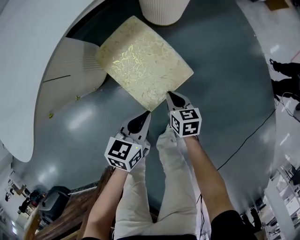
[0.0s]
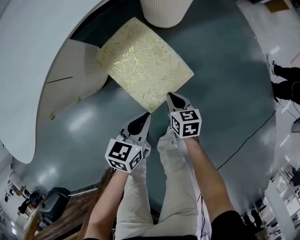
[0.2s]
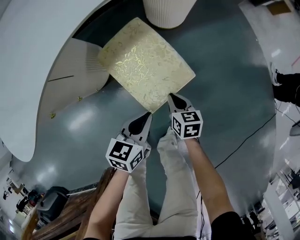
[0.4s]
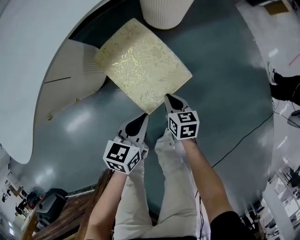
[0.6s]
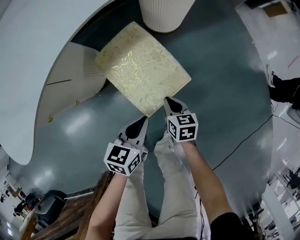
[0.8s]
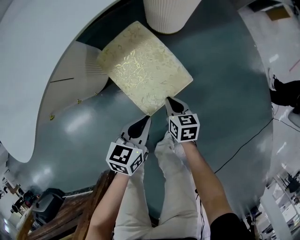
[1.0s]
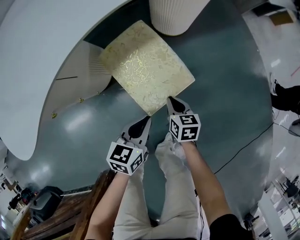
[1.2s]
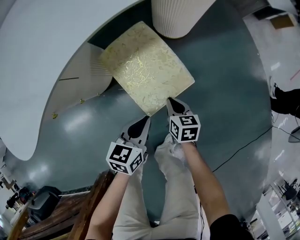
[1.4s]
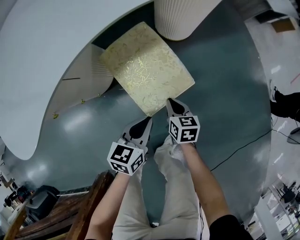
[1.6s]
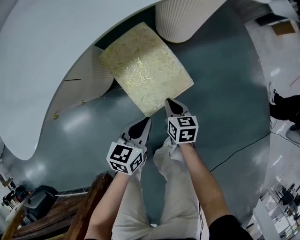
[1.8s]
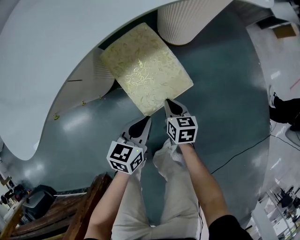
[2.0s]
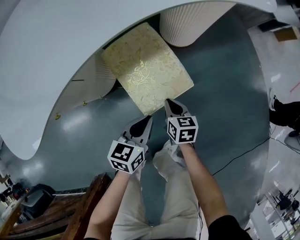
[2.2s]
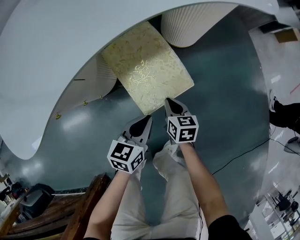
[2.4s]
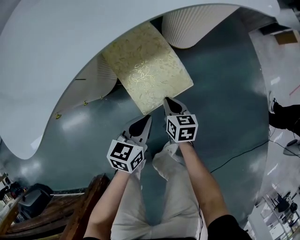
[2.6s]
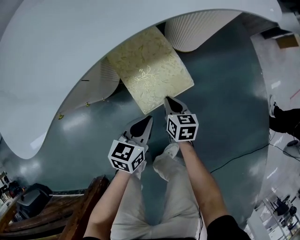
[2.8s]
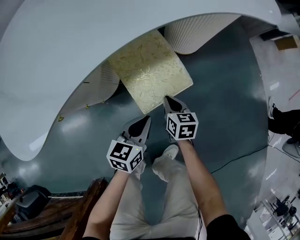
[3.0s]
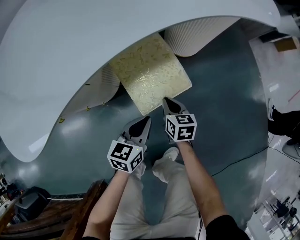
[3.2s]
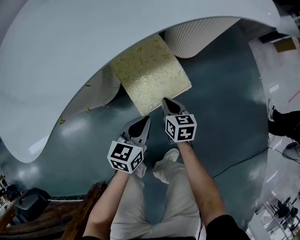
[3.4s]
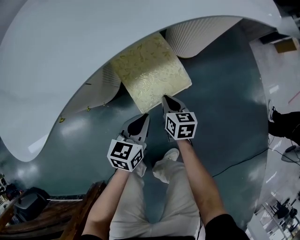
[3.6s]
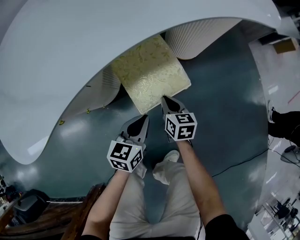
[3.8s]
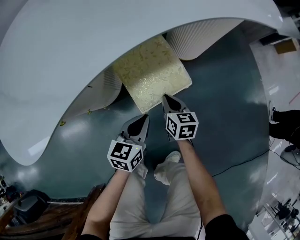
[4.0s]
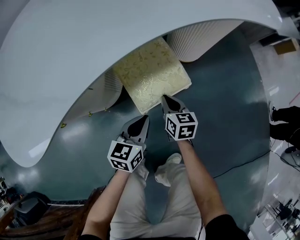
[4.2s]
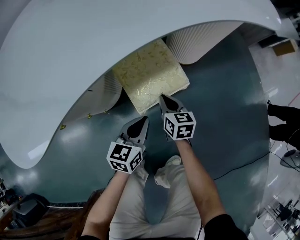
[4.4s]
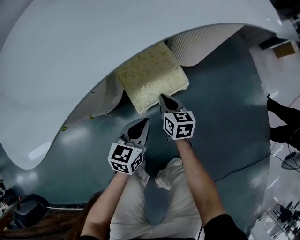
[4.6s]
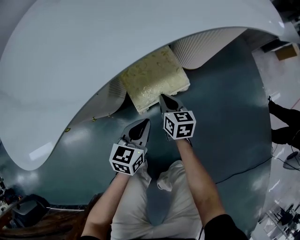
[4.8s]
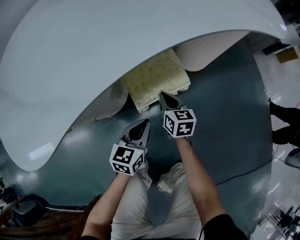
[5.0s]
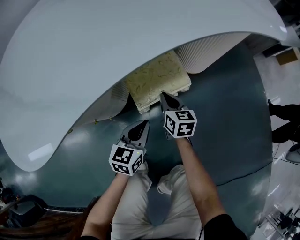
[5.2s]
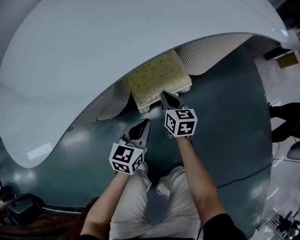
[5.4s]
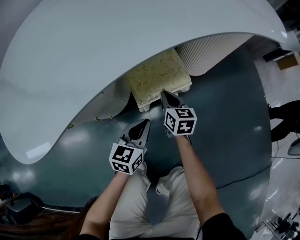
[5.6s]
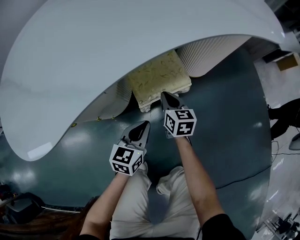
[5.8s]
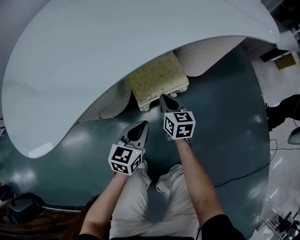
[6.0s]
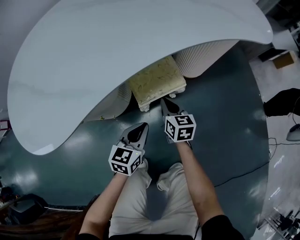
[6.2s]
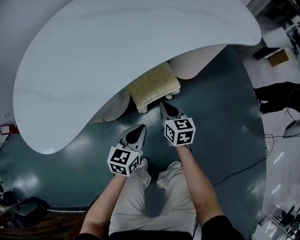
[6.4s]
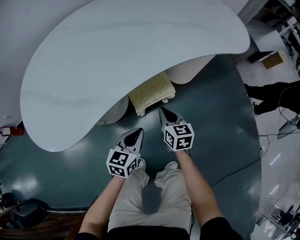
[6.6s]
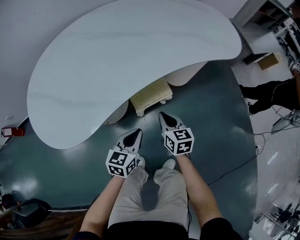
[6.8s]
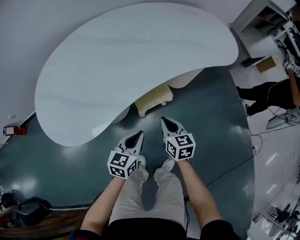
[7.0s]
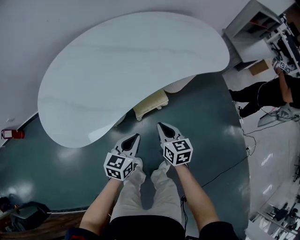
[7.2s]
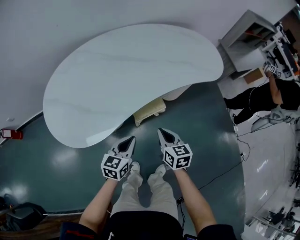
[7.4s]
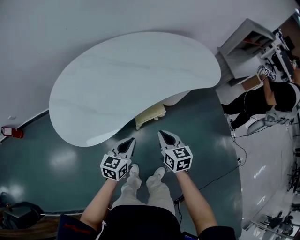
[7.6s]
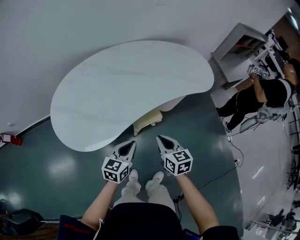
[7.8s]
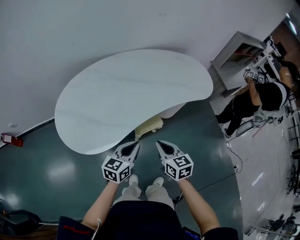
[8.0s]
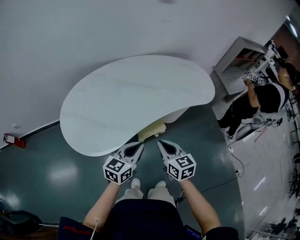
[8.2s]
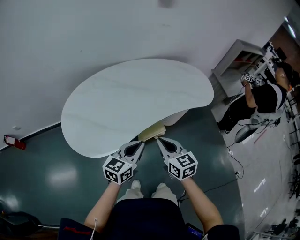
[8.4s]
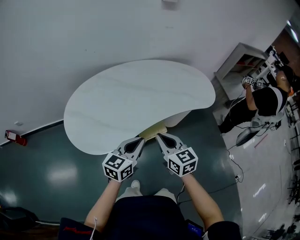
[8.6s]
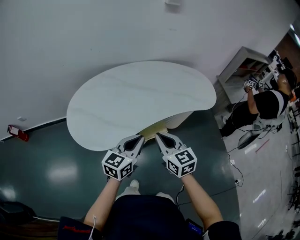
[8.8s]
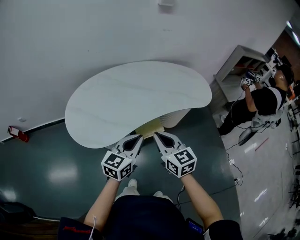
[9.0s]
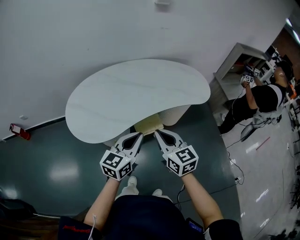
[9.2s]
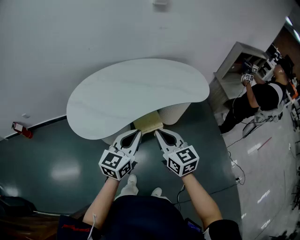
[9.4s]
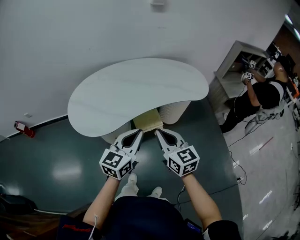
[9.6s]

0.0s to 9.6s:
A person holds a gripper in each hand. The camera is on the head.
0.0s to 3.2s: There are only small adjustments of the grippers.
3.2s to 4.8s: The grippers make only small movements.
4.8s to 6.4s: Both grippers move upward, about 25 cm.
6.4s to 8.0s: Both grippers travel together upward, some 70 cm.
8.0s to 9.6s: The two grippers go about 35 cm backward, upward and to the right. The left gripper changes its angle by about 20 degrees. Meanwhile the right gripper swivels approximately 20 degrees.

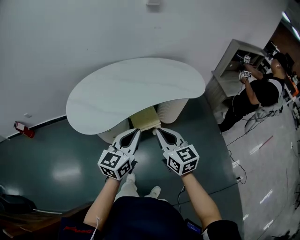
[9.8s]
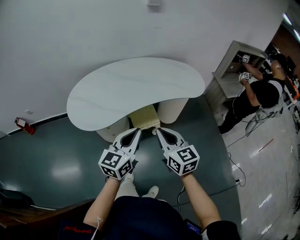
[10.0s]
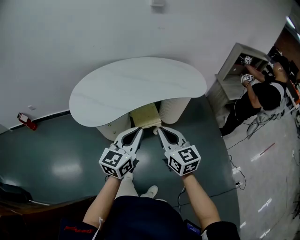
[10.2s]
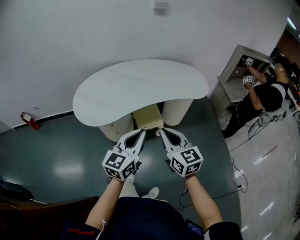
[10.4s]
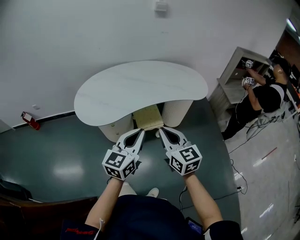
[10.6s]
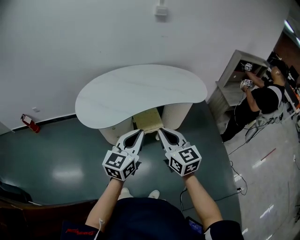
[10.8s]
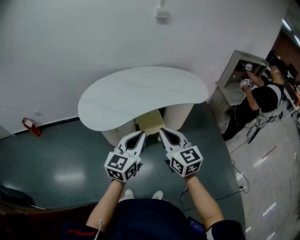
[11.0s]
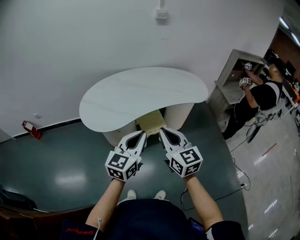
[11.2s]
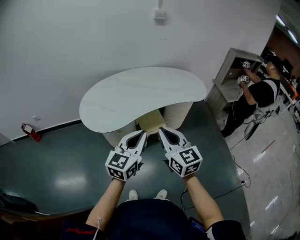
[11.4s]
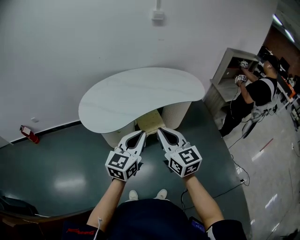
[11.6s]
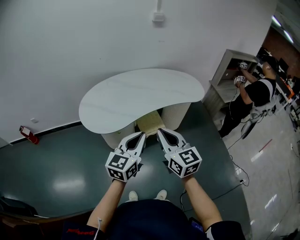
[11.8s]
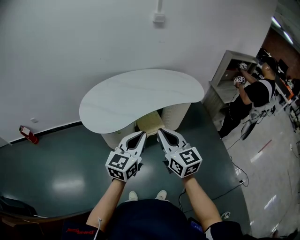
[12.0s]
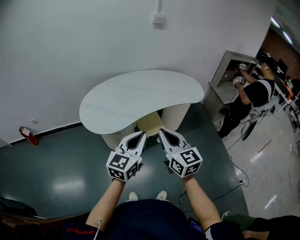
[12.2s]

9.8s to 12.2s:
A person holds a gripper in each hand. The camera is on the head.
9.8s to 11.0s: The grippers both shift backward by roughly 15 cm.
11.0s to 12.2s: The two grippers go about 10 cm to the left and backward.

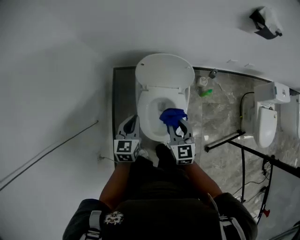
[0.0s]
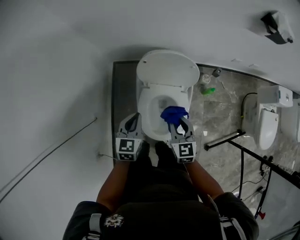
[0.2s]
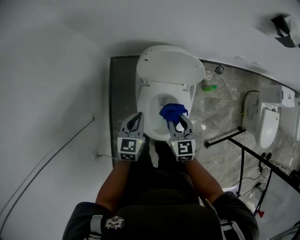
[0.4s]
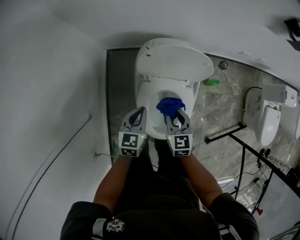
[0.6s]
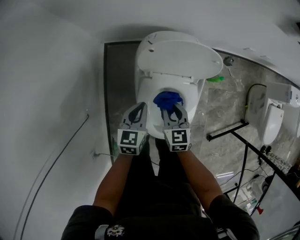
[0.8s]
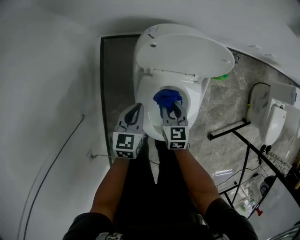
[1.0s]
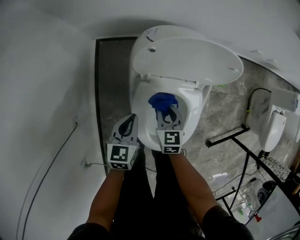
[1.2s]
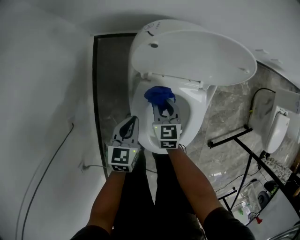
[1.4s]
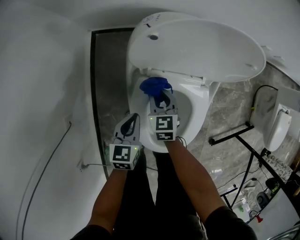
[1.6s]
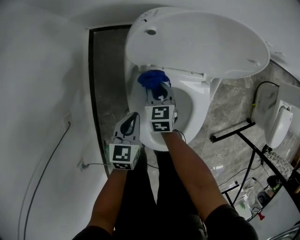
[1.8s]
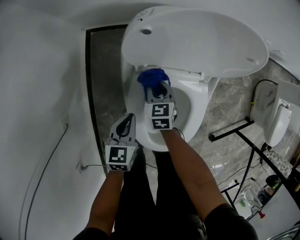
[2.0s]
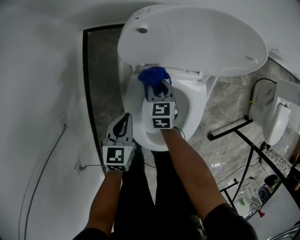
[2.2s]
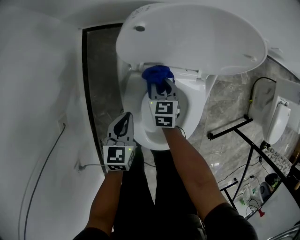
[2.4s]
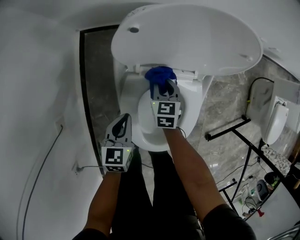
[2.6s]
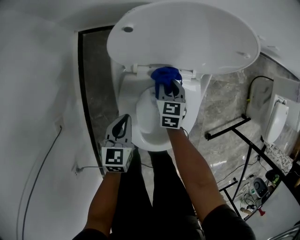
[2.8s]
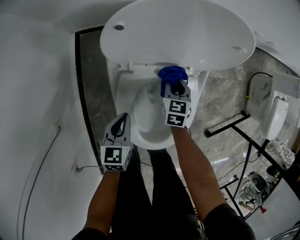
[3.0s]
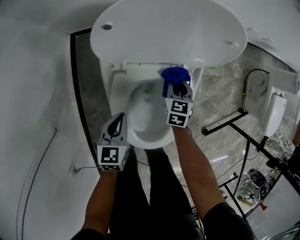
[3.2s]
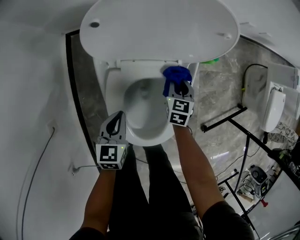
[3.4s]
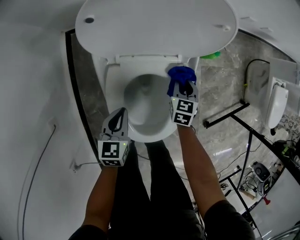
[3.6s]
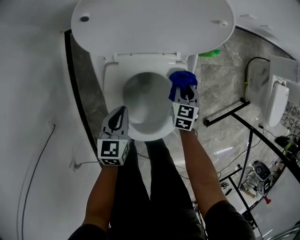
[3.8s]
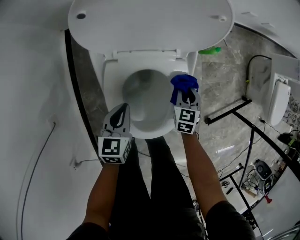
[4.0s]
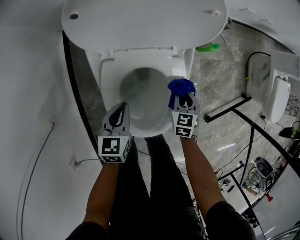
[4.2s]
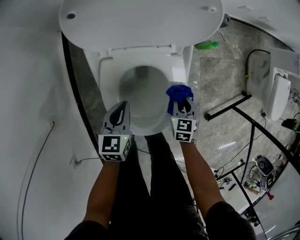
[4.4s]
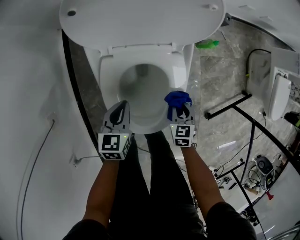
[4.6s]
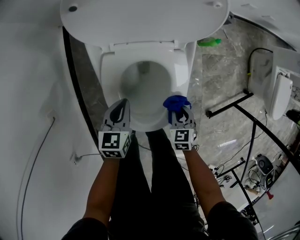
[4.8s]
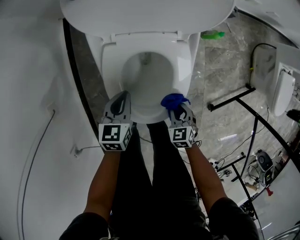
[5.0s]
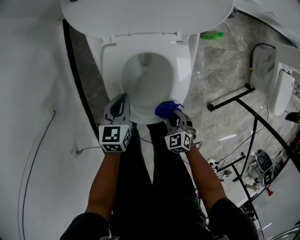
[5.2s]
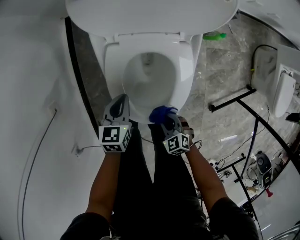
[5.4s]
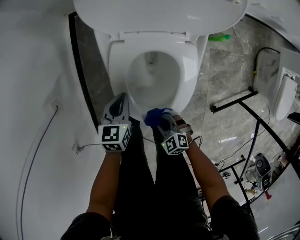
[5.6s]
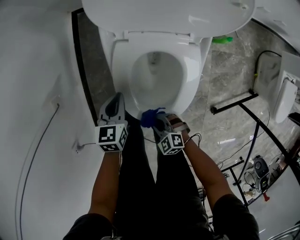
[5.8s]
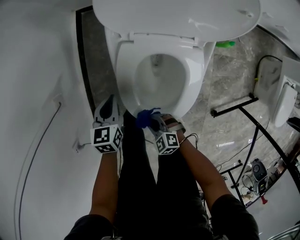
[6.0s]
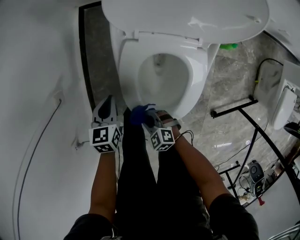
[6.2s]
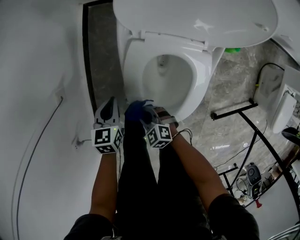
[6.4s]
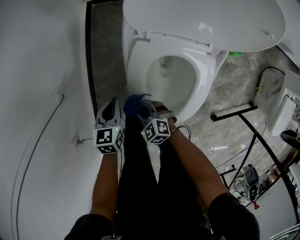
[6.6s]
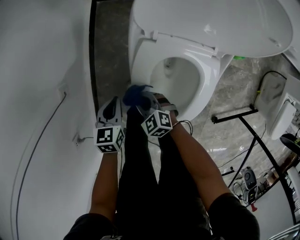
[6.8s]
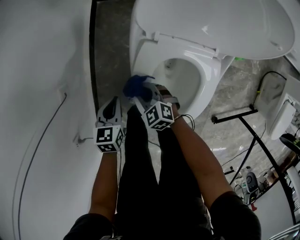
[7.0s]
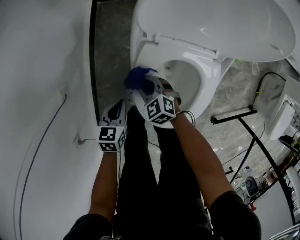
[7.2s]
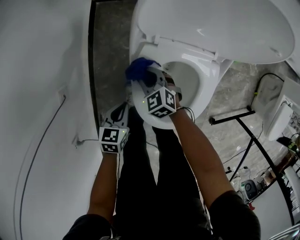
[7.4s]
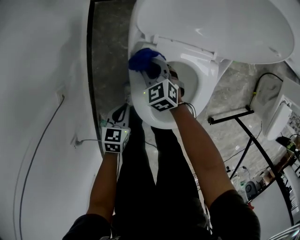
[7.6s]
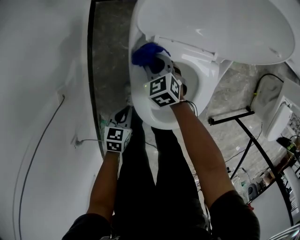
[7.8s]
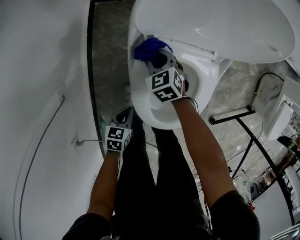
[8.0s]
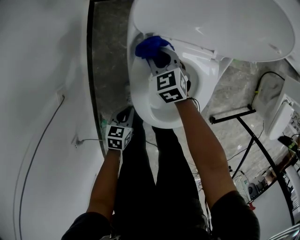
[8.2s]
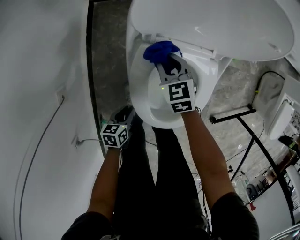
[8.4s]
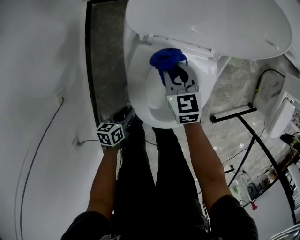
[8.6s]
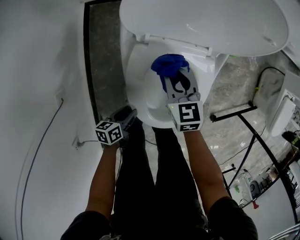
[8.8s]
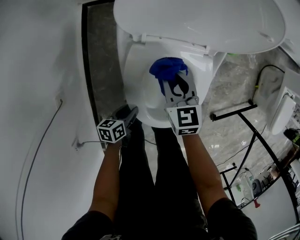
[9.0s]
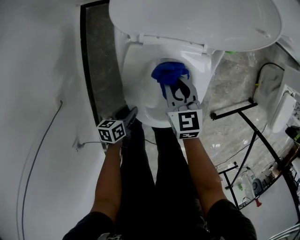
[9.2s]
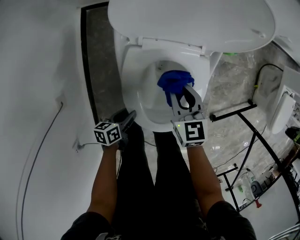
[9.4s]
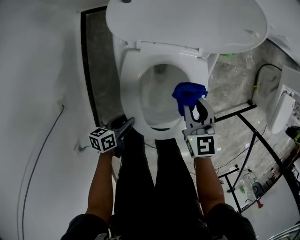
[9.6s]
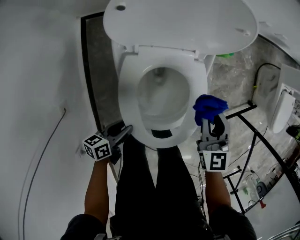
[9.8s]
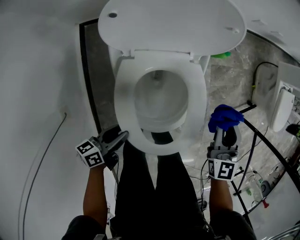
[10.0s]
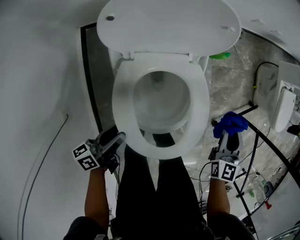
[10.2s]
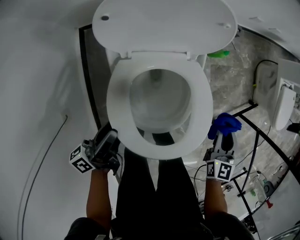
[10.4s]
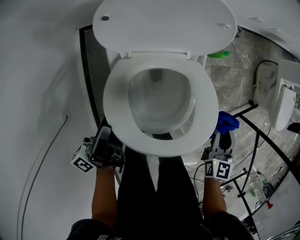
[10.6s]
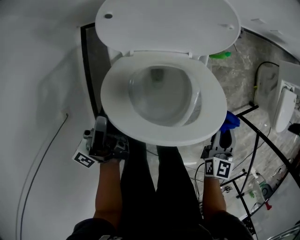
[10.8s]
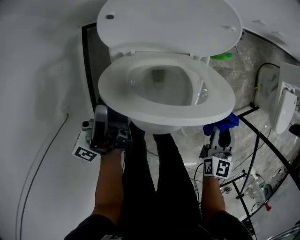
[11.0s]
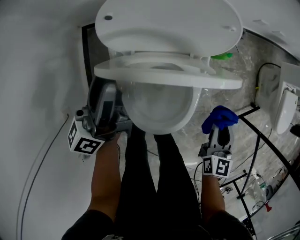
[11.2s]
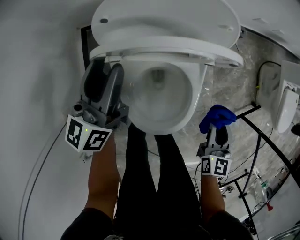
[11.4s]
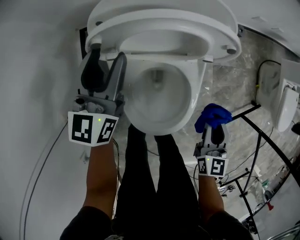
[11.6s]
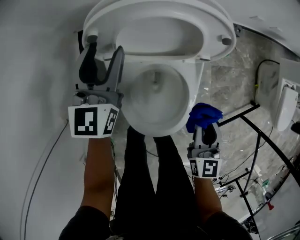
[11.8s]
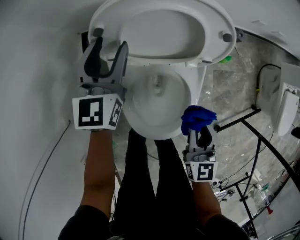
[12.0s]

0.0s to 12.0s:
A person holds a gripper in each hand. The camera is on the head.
0.0s to 1.6s: The right gripper travels downward and forward by approximately 40 cm, while the left gripper shifts roughly 30 cm downward.
1.6s to 3.0s: The right gripper heads to the right, covering roughly 15 cm.
3.0s to 4.4s: The left gripper moves to the right, about 5 cm. The right gripper moves to the right and backward, roughly 20 cm.
4.4s to 6.0s: The right gripper shifts by some 30 cm, and rotates approximately 70 degrees, while the left gripper shifts by approximately 10 cm.
6.0s to 7.6s: The left gripper changes place by some 10 cm; the right gripper shifts by approximately 30 cm, and rotates about 20 degrees.
7.6s to 9.0s: The right gripper goes some 15 cm to the right and upward, and swivels some 30 degrees, while the left gripper shifts by about 5 cm, changes its angle by about 30 degrees, and opens up.
9.0s to 10.4s: The right gripper is displaced to the right by approximately 30 cm, and changes its angle by roughly 30 degrees. Meanwhile the left gripper goes some 25 cm upward, and tilts its fingers about 40 degrees upward.
10.4s to 12.0s: The left gripper travels forward by some 25 cm, and twists roughly 70 degrees clockwise, seen from behind. Meanwhile the right gripper goes roughly 15 cm to the left.
